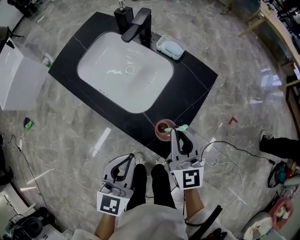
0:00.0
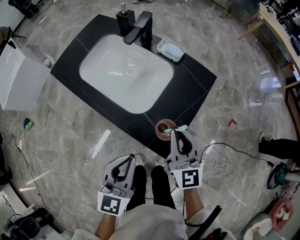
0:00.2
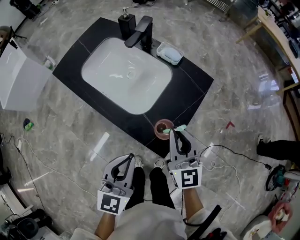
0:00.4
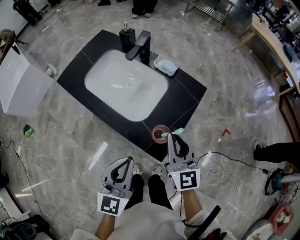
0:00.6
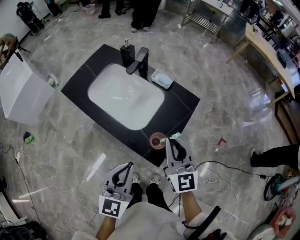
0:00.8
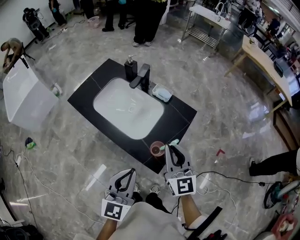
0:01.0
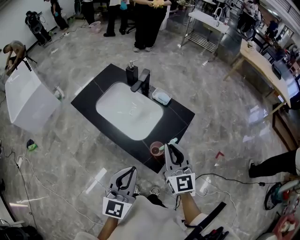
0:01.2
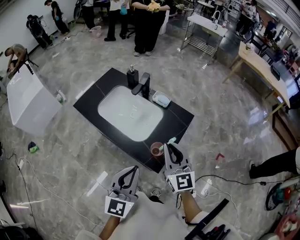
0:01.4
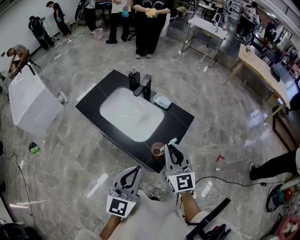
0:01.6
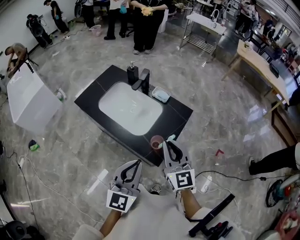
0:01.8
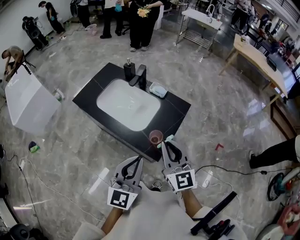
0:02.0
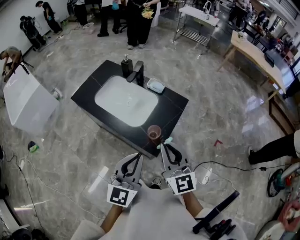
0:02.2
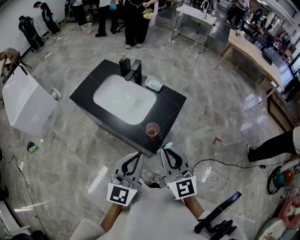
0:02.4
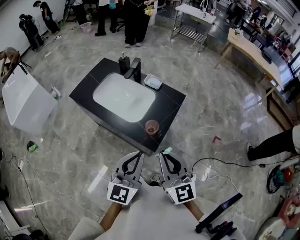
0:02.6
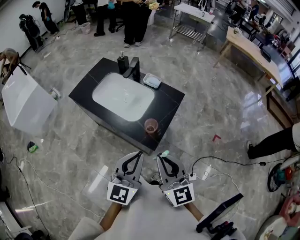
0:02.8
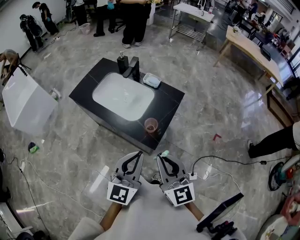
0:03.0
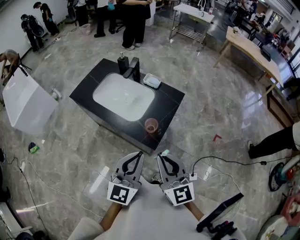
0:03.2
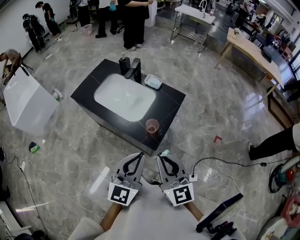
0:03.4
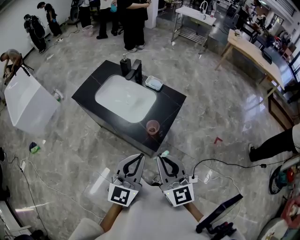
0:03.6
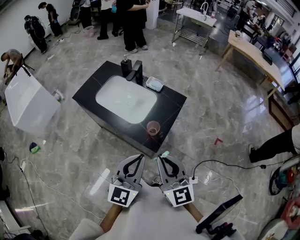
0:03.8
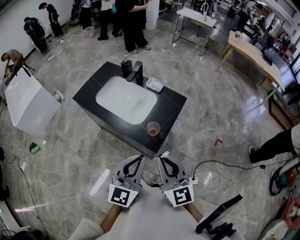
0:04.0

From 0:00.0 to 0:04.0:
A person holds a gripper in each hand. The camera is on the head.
From 0:00.0 to 0:01.4: Both grippers move upward, about 15 cm.
From 0:01.4 to 0:02.6: The left gripper changes place by roughly 5 cm. The right gripper heads backward, covering approximately 15 cm.
From 0:02.6 to 0:04.0: There are only small adjustments of the grippers.

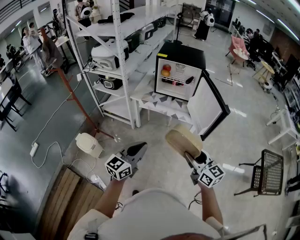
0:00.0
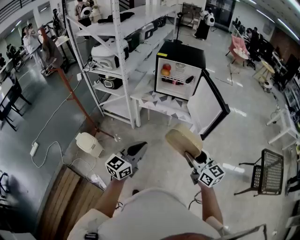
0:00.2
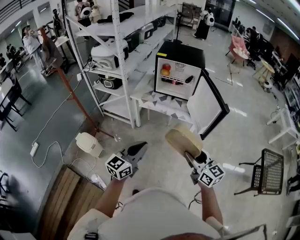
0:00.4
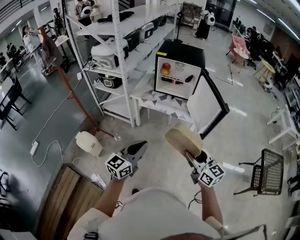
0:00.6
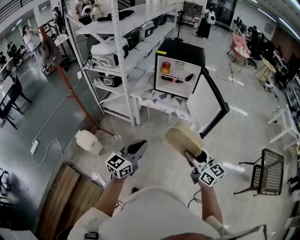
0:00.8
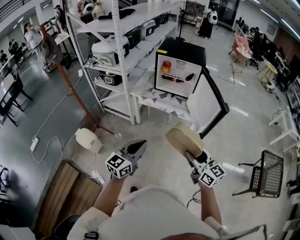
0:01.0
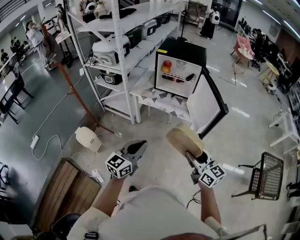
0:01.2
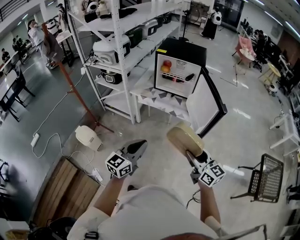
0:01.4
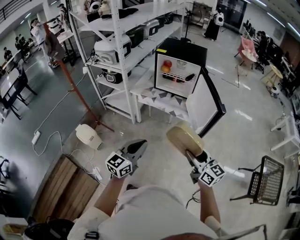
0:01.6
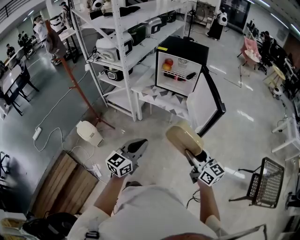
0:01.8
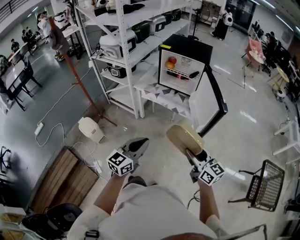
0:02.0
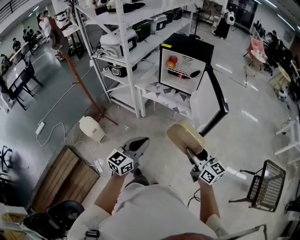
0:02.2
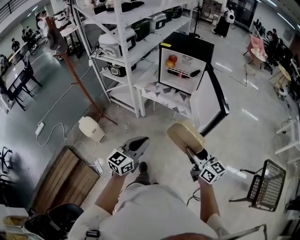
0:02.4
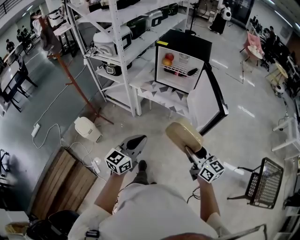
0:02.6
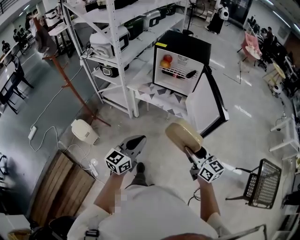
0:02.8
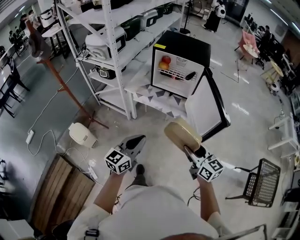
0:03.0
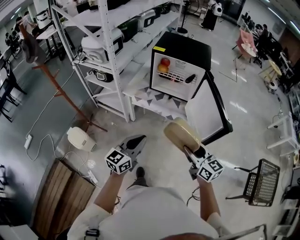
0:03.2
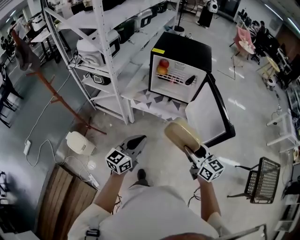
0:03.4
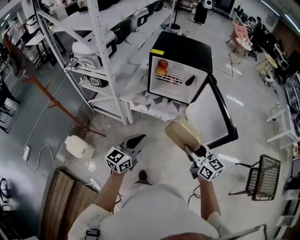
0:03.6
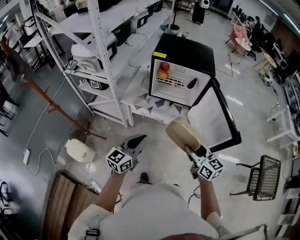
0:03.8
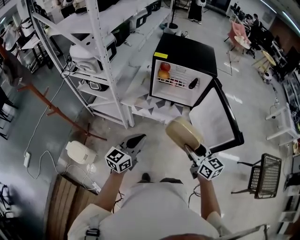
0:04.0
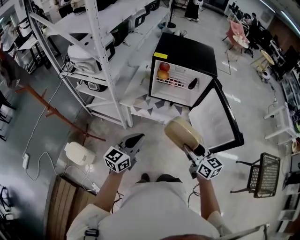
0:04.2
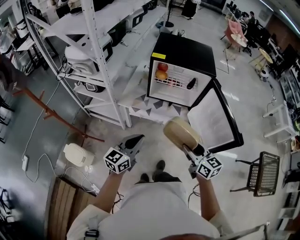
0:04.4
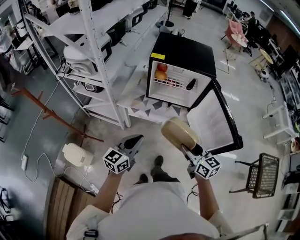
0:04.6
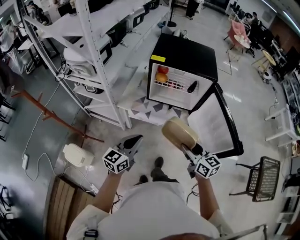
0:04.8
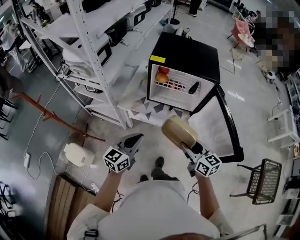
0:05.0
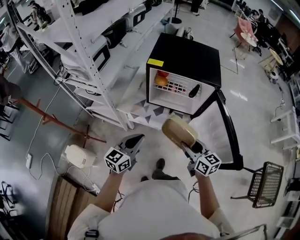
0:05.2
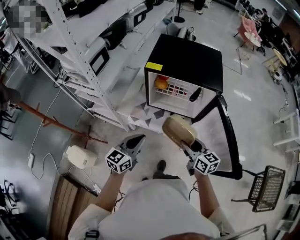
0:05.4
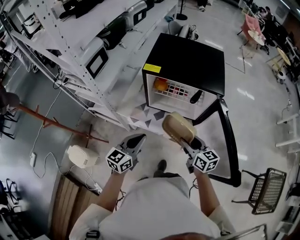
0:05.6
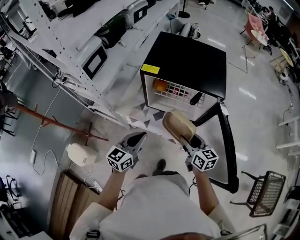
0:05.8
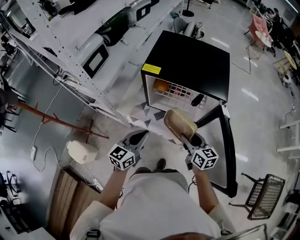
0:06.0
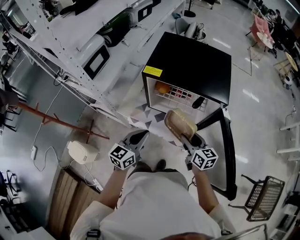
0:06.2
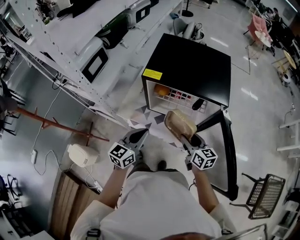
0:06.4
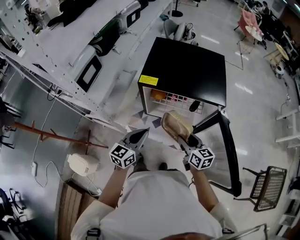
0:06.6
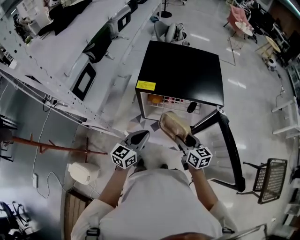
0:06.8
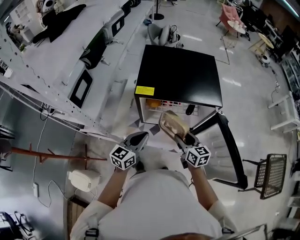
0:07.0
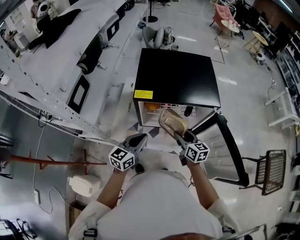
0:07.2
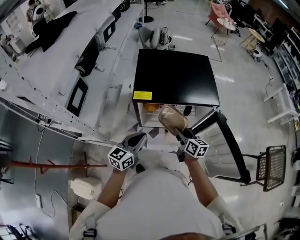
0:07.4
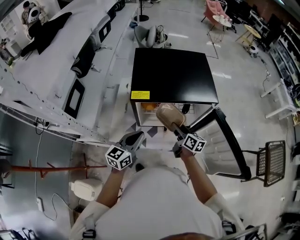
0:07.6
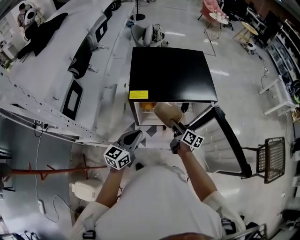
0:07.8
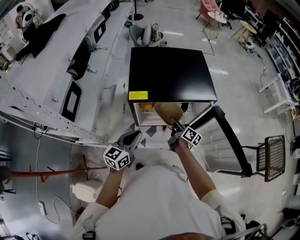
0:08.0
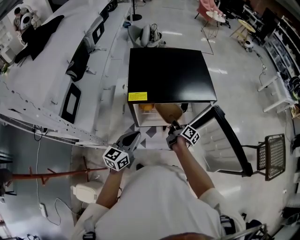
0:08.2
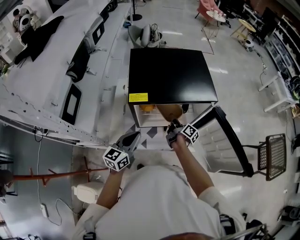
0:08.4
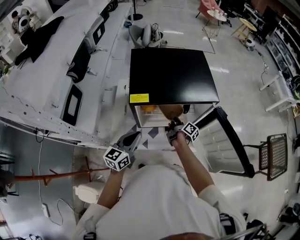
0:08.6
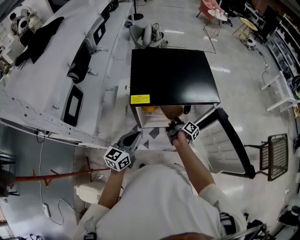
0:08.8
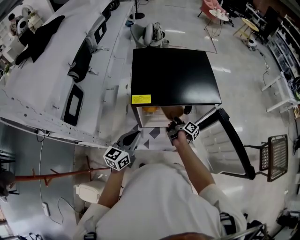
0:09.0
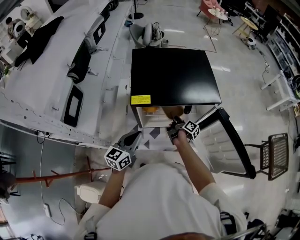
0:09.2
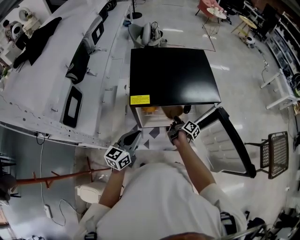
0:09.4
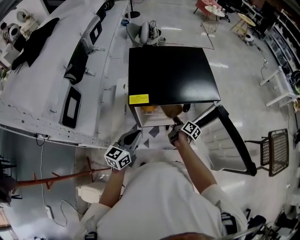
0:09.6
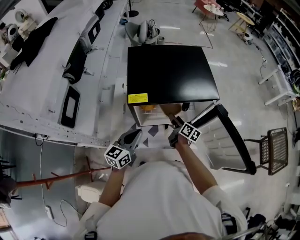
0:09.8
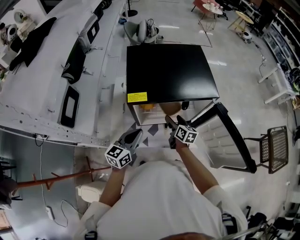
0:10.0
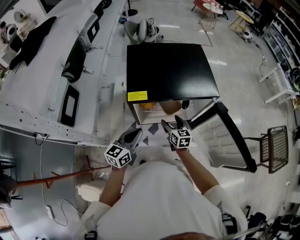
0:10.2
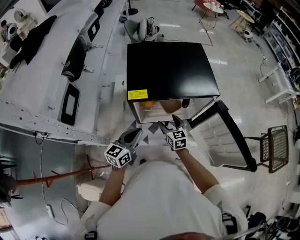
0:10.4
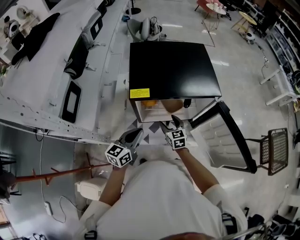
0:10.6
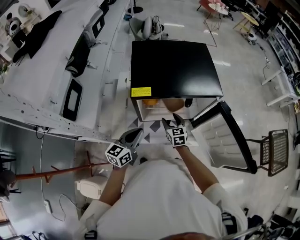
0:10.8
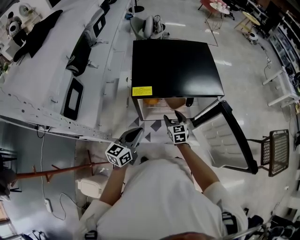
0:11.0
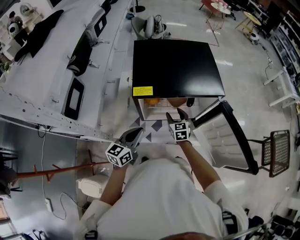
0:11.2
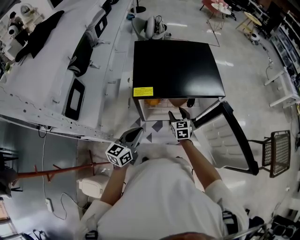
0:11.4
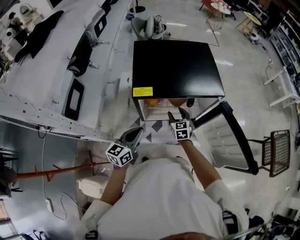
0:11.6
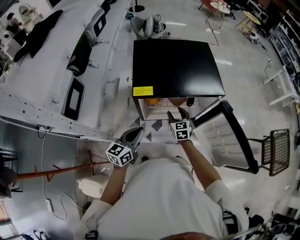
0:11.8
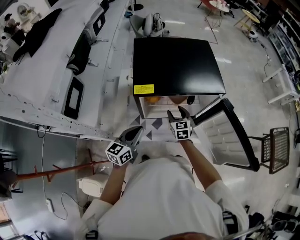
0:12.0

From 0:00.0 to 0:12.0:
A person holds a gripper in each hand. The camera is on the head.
From 0:00.0 to 0:01.6: Both grippers move to the right, roughly 5 cm.
From 0:01.6 to 0:03.0: The two grippers go about 10 cm forward.
From 0:03.0 to 0:04.4: The grippers both shift forward and to the left by approximately 20 cm.
From 0:04.4 to 0:06.0: The two grippers go approximately 20 cm forward.
From 0:06.0 to 0:07.6: The right gripper travels forward by about 10 cm, and swivels roughly 30 degrees. The left gripper is displaced forward and to the left by some 10 cm.
From 0:07.6 to 0:09.0: The right gripper travels downward and forward by approximately 10 cm, and twists approximately 40 degrees clockwise, seen from behind.
From 0:09.0 to 0:10.4: The right gripper is displaced backward by approximately 5 cm, rolls counterclockwise, seen from behind, by roughly 80 degrees, and opens.
From 0:10.4 to 0:12.0: The grippers make only small movements.

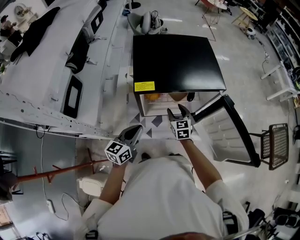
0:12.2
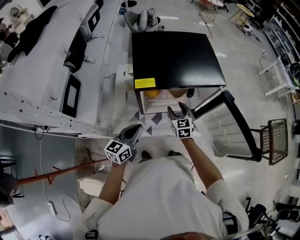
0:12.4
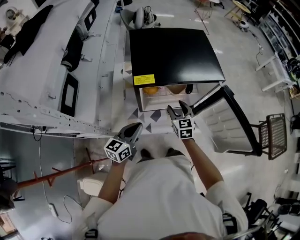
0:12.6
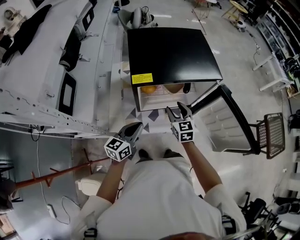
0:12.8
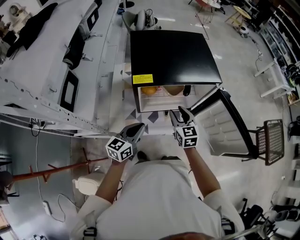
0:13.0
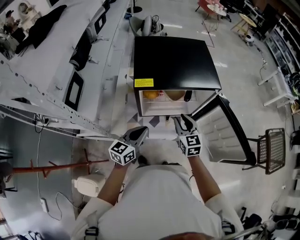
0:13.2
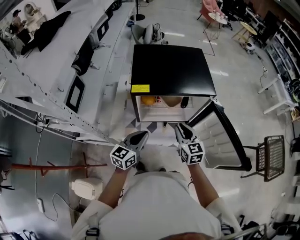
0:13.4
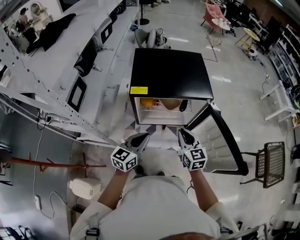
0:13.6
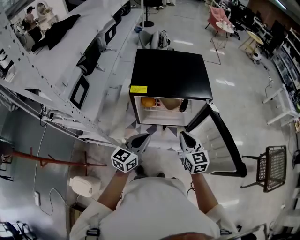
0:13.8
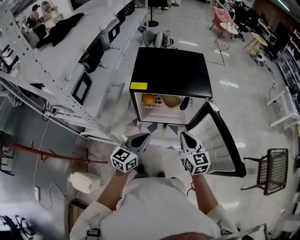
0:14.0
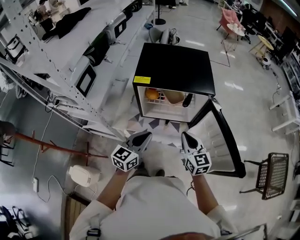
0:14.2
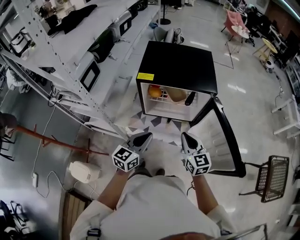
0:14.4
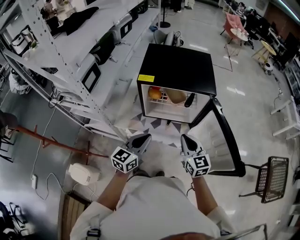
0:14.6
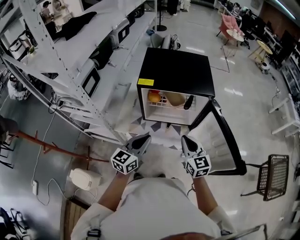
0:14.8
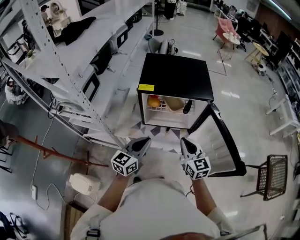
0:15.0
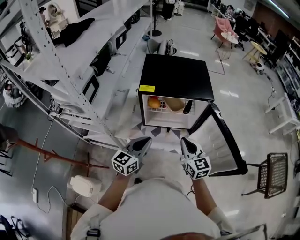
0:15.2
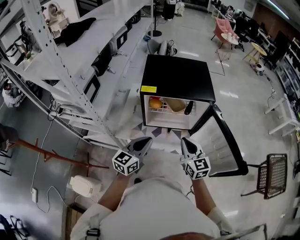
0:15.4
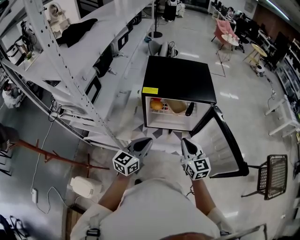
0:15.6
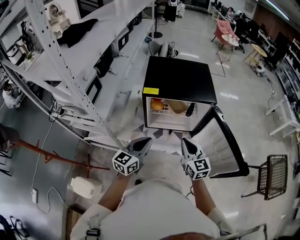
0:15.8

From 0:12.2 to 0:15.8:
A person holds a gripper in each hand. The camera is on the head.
From 0:12.2 to 0:14.0: The right gripper moves upward, backward and to the right, about 25 cm, and closes its fingers, while the left gripper goes some 15 cm to the right, upward and backward.
From 0:14.0 to 0:15.8: The left gripper changes place by some 5 cm. Meanwhile the right gripper shifts by some 5 cm.

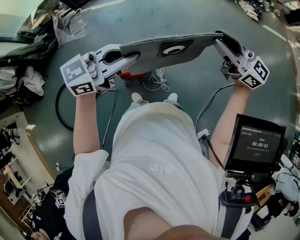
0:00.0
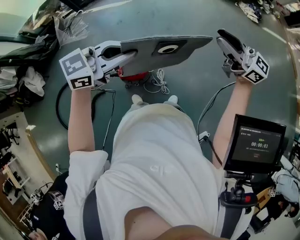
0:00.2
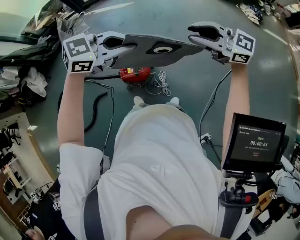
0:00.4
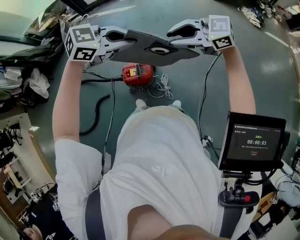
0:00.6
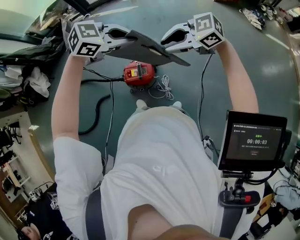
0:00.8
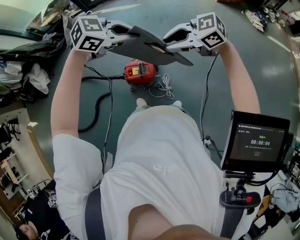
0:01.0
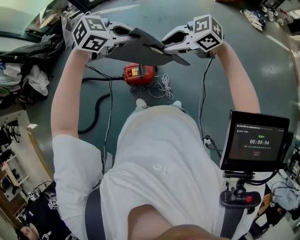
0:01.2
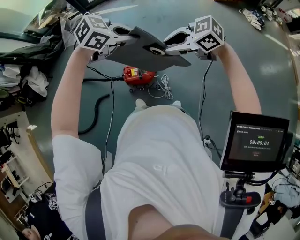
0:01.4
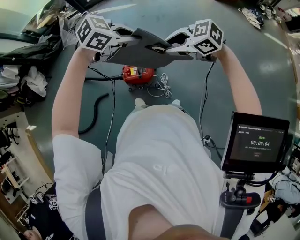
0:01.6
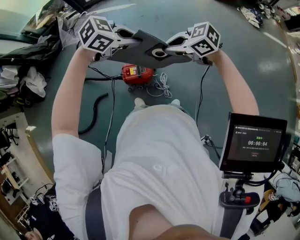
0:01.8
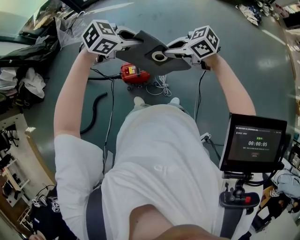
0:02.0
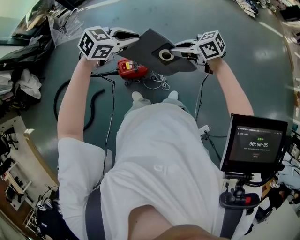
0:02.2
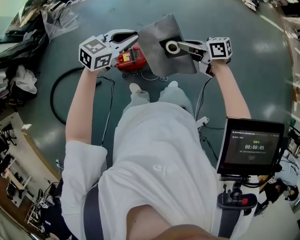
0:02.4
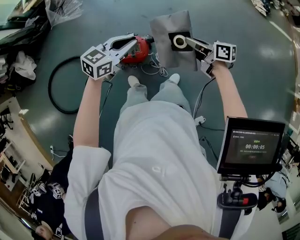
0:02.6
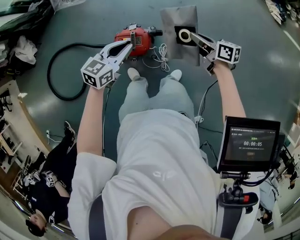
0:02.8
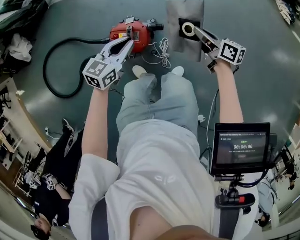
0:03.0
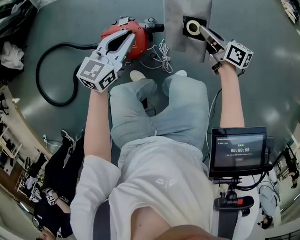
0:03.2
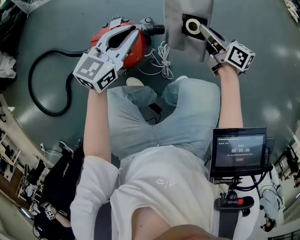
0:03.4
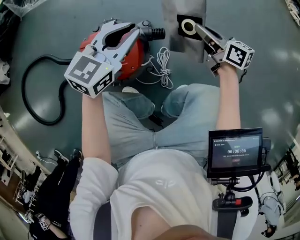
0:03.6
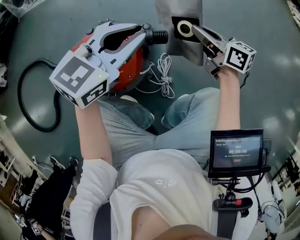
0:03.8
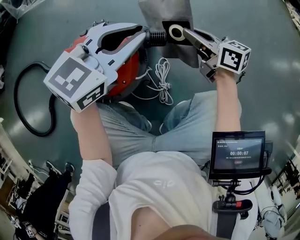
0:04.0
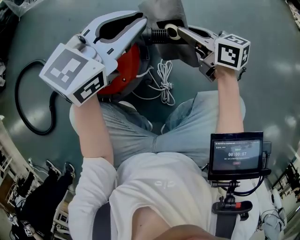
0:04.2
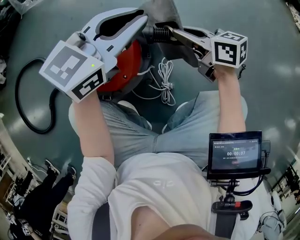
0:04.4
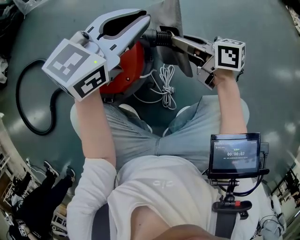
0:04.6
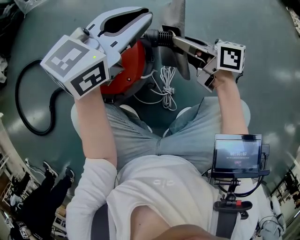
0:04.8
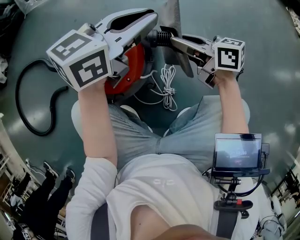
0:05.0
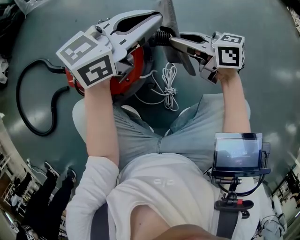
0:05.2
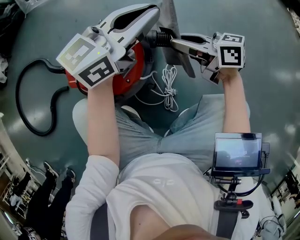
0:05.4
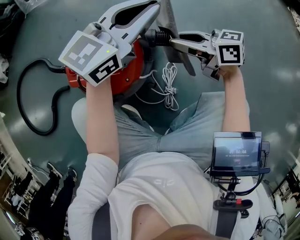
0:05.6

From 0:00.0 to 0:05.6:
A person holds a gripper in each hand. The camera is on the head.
From 0:00.0 to 0:01.4: The left gripper travels downward by approximately 10 cm, and turns by about 40 degrees. The right gripper changes place by some 20 cm, and swivels some 60 degrees.
From 0:01.4 to 0:02.8: The left gripper rotates some 40 degrees; the right gripper shifts by approximately 20 cm, and rotates some 60 degrees.
From 0:02.8 to 0:04.2: The grippers both shift upward and forward by about 25 cm. The left gripper rotates some 20 degrees, while the right gripper rotates approximately 20 degrees.
From 0:04.2 to 0:05.6: The right gripper changes place by roughly 10 cm, and rotates some 20 degrees, while the left gripper changes place by approximately 5 cm.
